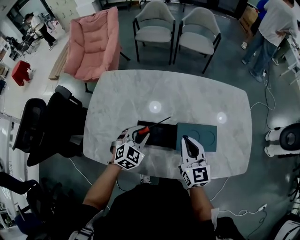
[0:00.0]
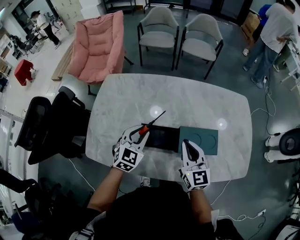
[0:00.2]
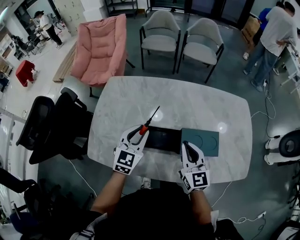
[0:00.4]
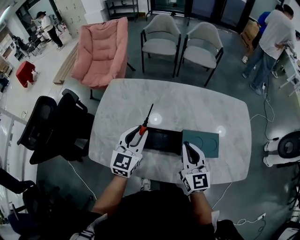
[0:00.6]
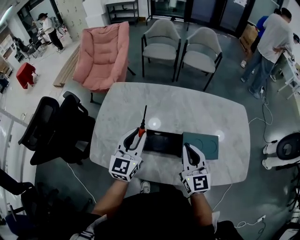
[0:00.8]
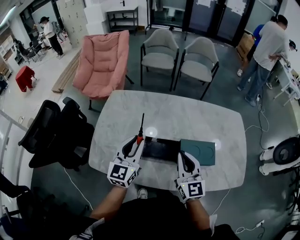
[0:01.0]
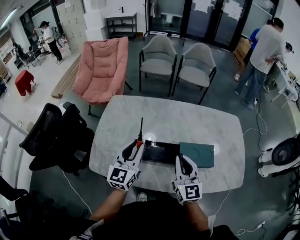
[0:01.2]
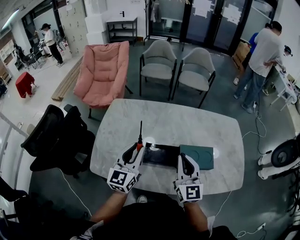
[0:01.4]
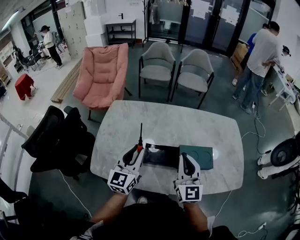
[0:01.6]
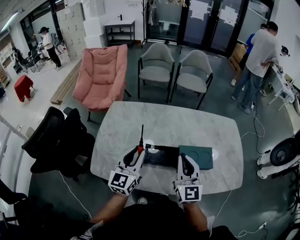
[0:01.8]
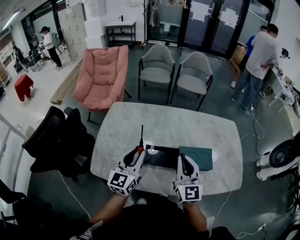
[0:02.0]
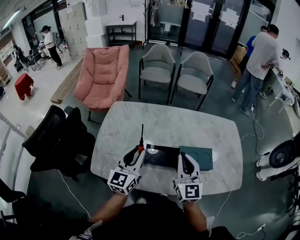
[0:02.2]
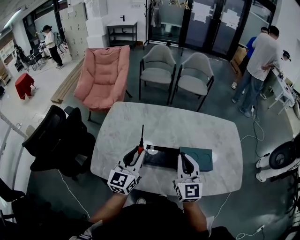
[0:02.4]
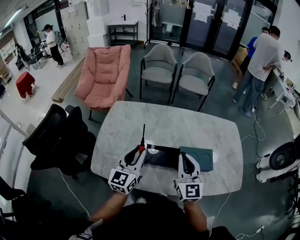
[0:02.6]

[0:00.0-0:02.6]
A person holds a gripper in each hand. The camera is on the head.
0:00.0 to 0:01.2: The right gripper shifts some 10 cm to the left, upward and backward; the left gripper travels upward and to the left by roughly 20 cm, and angles its fingers upward, by some 40 degrees.
0:01.2 to 0:02.6: The grippers stay close to where they were, moving slightly.

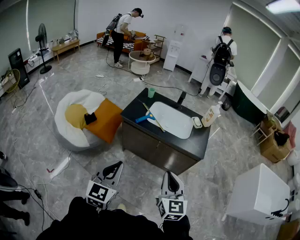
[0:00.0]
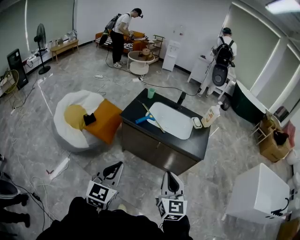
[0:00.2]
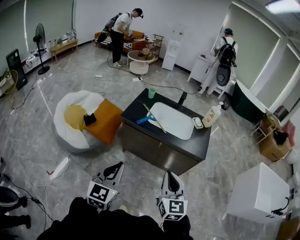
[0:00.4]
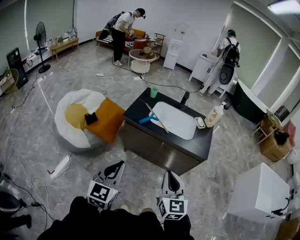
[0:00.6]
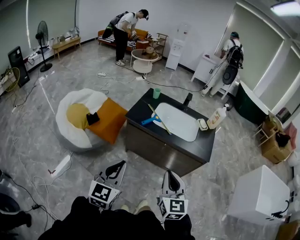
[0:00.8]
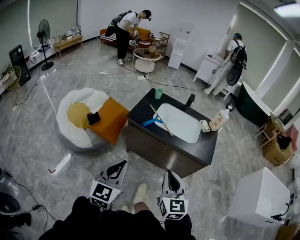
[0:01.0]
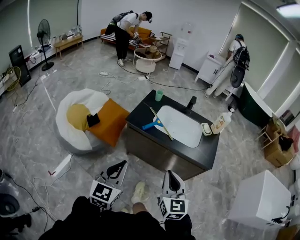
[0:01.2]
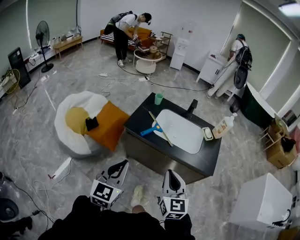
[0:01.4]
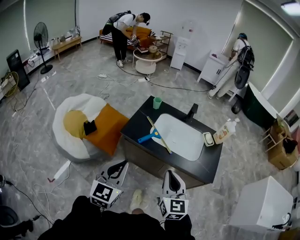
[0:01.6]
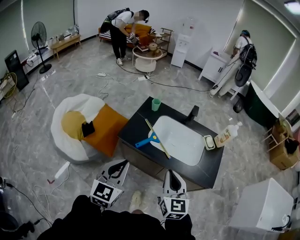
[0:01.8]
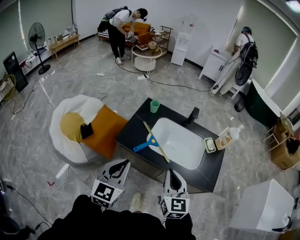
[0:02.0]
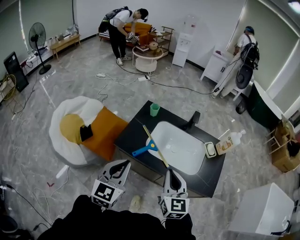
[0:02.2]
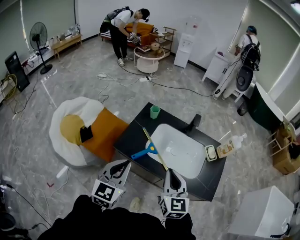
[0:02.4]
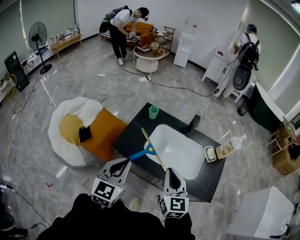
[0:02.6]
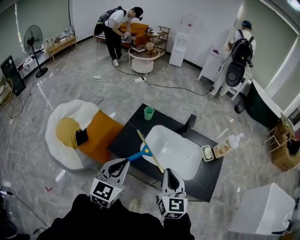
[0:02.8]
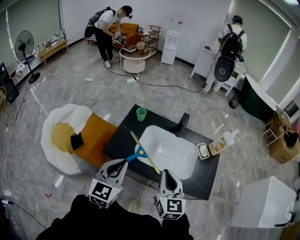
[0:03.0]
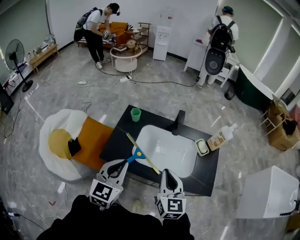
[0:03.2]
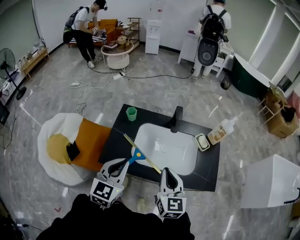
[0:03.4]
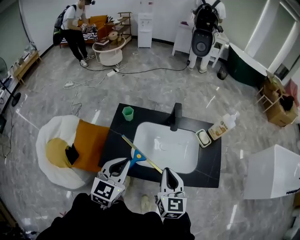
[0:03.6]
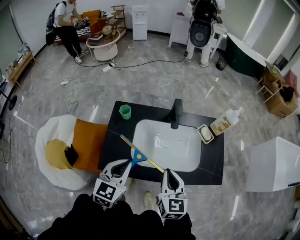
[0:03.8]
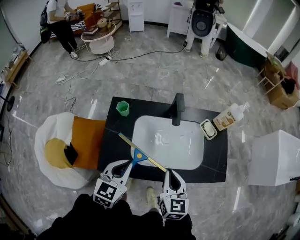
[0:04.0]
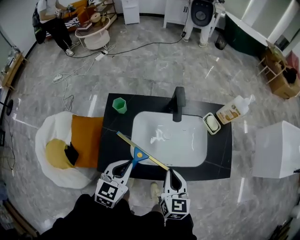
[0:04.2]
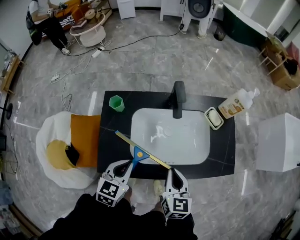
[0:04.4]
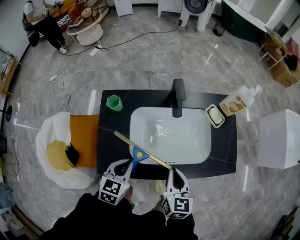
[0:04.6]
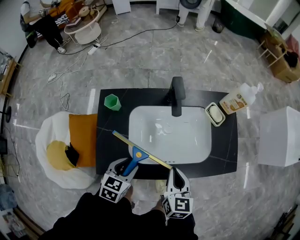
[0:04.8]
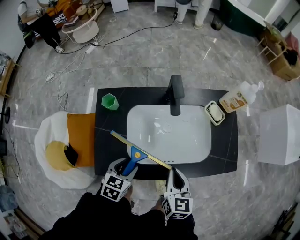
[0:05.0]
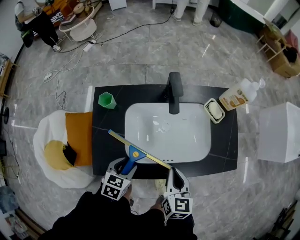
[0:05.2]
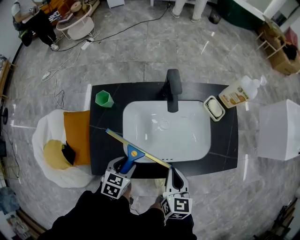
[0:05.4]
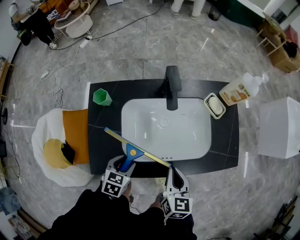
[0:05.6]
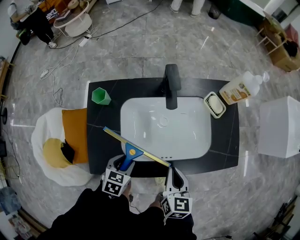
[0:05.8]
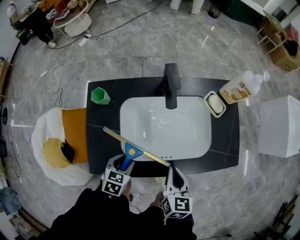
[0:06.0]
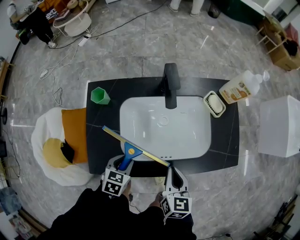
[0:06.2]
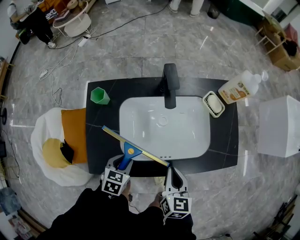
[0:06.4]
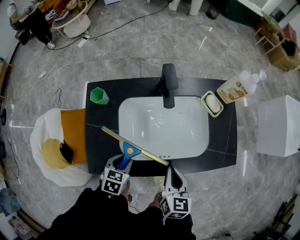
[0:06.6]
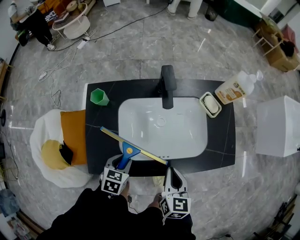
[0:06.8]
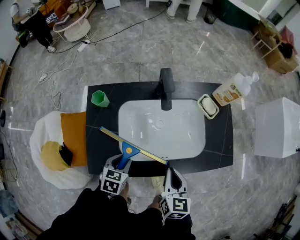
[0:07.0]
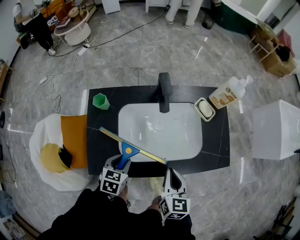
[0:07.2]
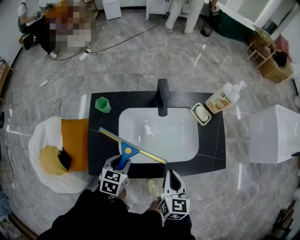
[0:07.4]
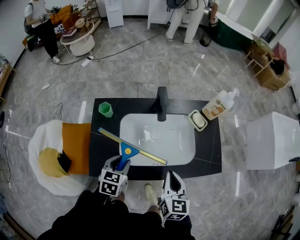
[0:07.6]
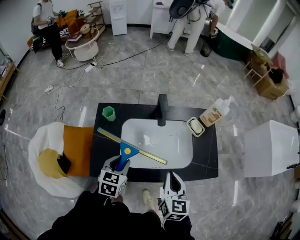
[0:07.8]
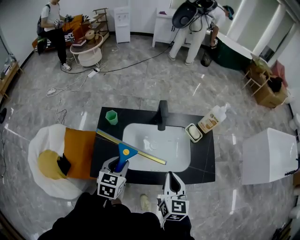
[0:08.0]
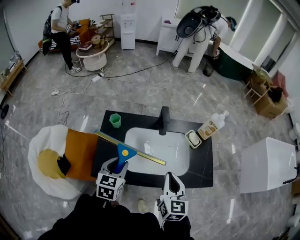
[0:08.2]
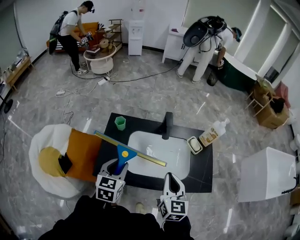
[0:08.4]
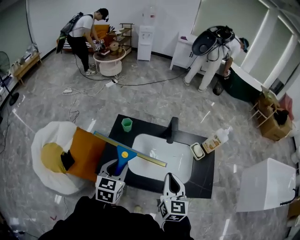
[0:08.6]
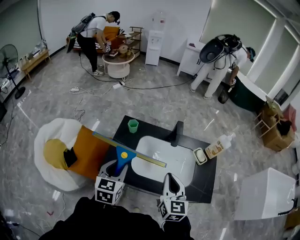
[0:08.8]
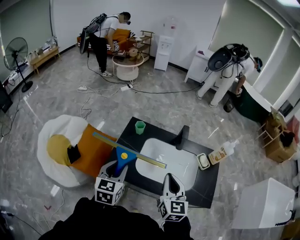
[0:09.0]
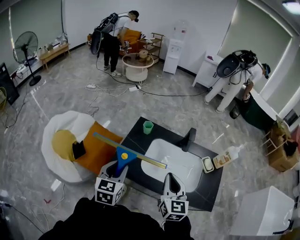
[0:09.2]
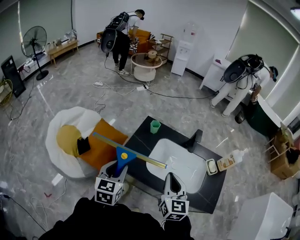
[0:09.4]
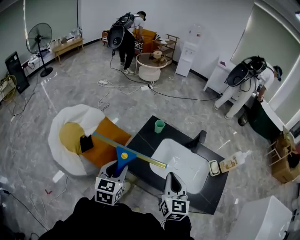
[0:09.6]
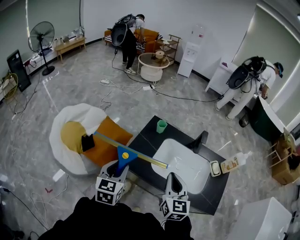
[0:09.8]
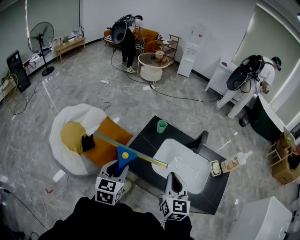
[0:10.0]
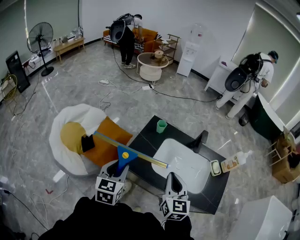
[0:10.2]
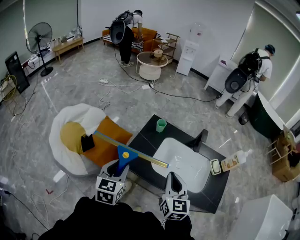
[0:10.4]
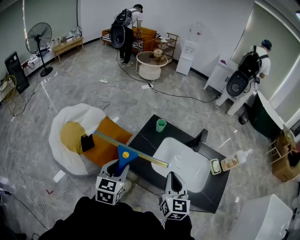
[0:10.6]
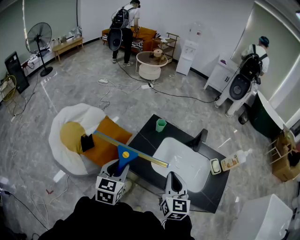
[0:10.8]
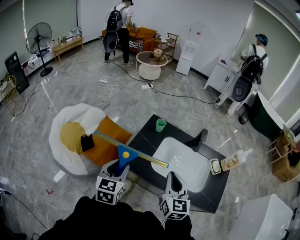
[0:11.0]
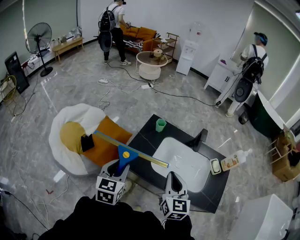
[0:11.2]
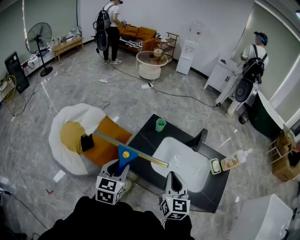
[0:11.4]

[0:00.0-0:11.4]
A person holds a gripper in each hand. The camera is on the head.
0:00.0 to 0:01.4: Both grippers move forward, about 15 cm.
0:01.4 to 0:02.8: Both grippers move forward, approximately 25 cm.
0:02.8 to 0:04.2: The left gripper shifts by roughly 25 cm, and changes its angle by some 30 degrees; the right gripper is displaced downward by roughly 15 cm, and rotates approximately 30 degrees.
0:04.2 to 0:05.6: The right gripper heads downward, covering roughly 10 cm, while the left gripper is displaced downward by approximately 20 cm, swivels roughly 30 degrees, and opens.
0:05.6 to 0:07.2: There are only small adjustments of the grippers.
0:07.2 to 0:08.6: The two grippers go approximately 20 cm upward. The right gripper turns by approximately 30 degrees. Meanwhile the left gripper changes its angle by some 30 degrees.
0:08.6 to 0:10.0: The left gripper goes some 15 cm to the left and backward, and rotates some 20 degrees, while the right gripper shifts some 10 cm to the left.
0:10.0 to 0:11.4: Both grippers stay put.

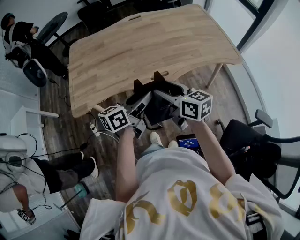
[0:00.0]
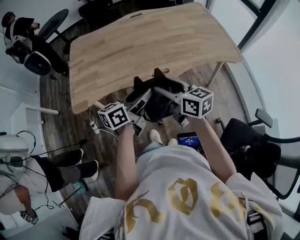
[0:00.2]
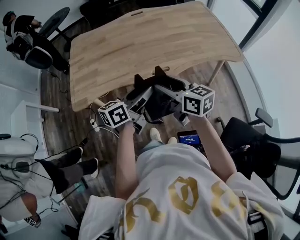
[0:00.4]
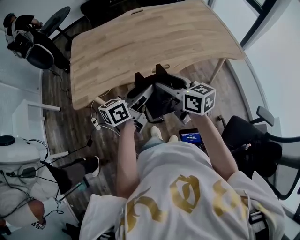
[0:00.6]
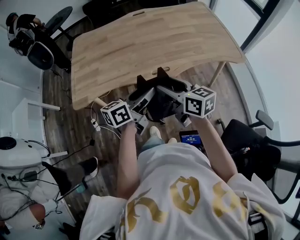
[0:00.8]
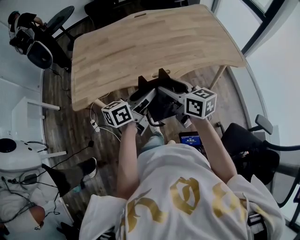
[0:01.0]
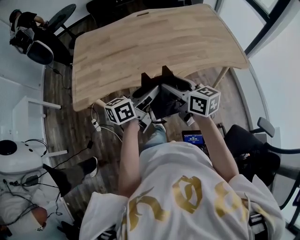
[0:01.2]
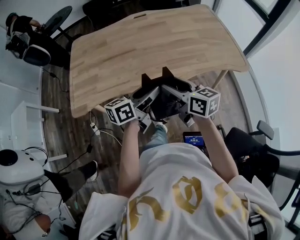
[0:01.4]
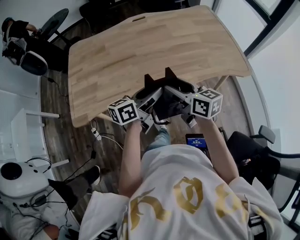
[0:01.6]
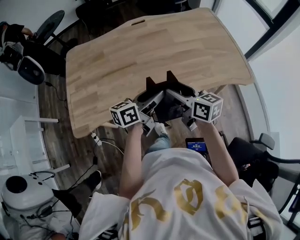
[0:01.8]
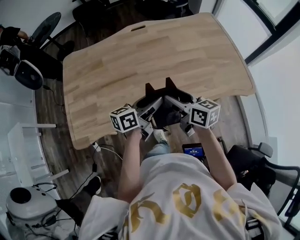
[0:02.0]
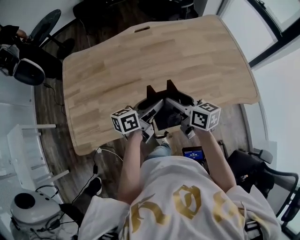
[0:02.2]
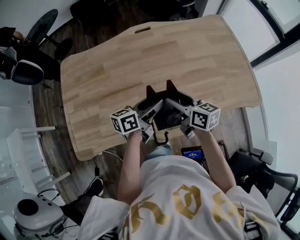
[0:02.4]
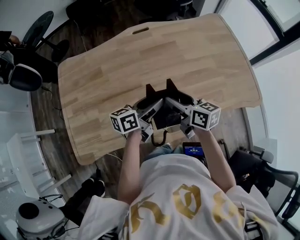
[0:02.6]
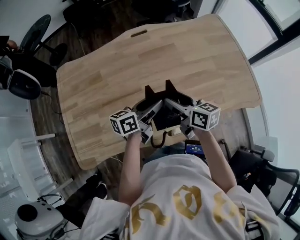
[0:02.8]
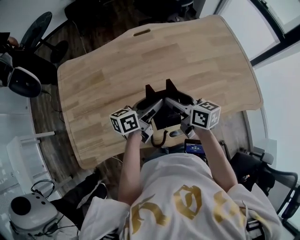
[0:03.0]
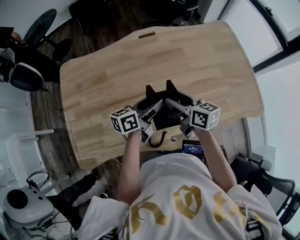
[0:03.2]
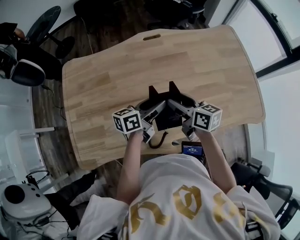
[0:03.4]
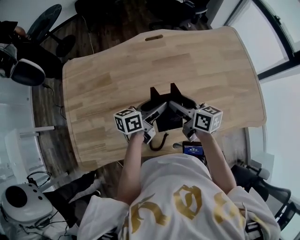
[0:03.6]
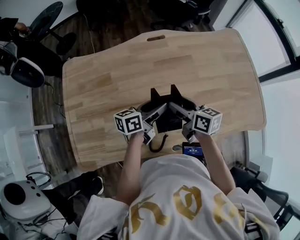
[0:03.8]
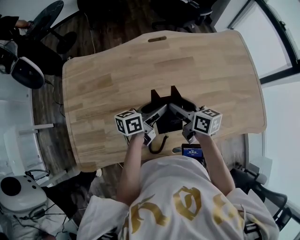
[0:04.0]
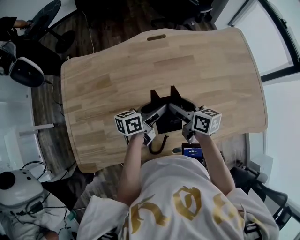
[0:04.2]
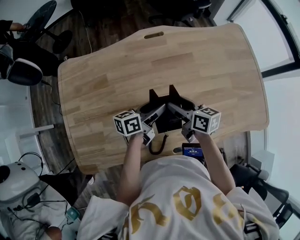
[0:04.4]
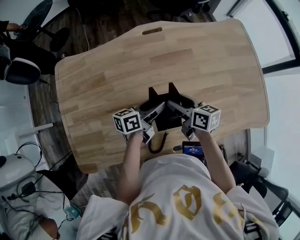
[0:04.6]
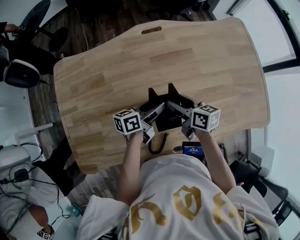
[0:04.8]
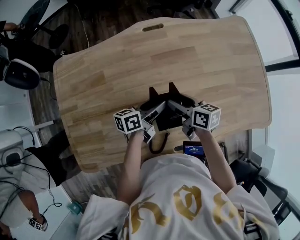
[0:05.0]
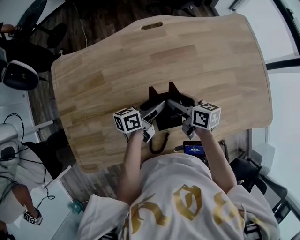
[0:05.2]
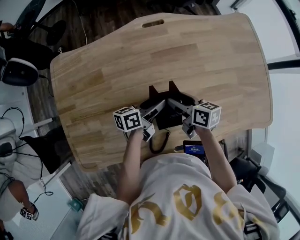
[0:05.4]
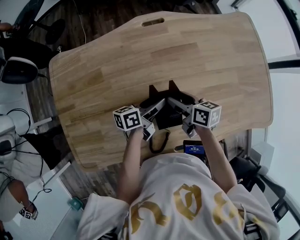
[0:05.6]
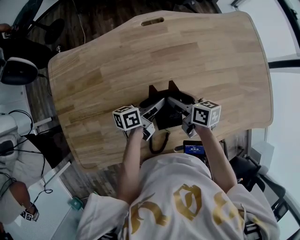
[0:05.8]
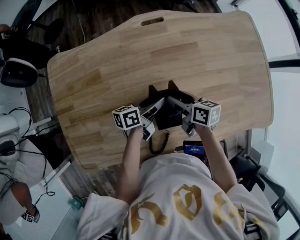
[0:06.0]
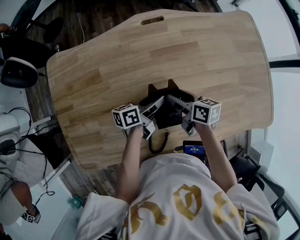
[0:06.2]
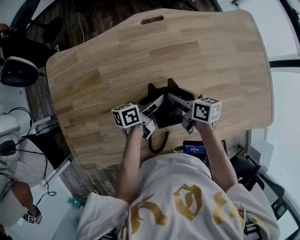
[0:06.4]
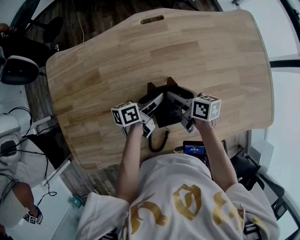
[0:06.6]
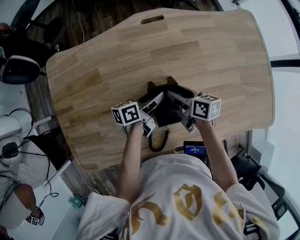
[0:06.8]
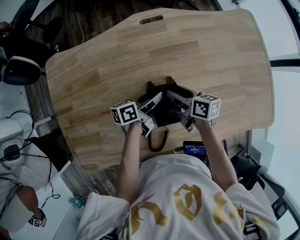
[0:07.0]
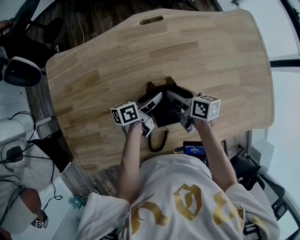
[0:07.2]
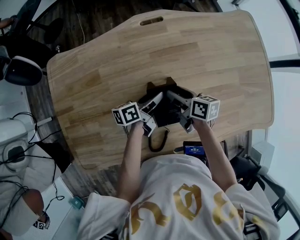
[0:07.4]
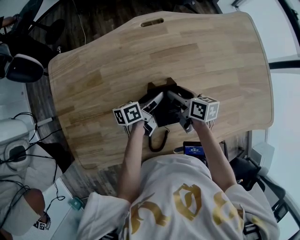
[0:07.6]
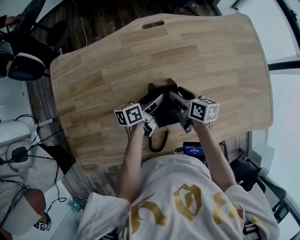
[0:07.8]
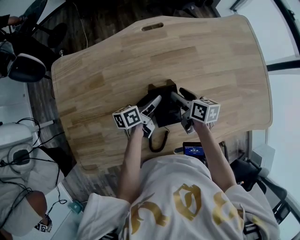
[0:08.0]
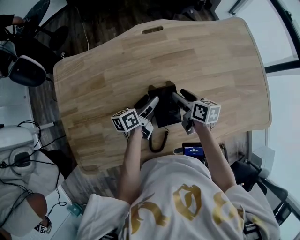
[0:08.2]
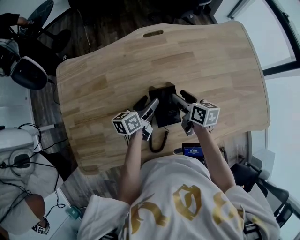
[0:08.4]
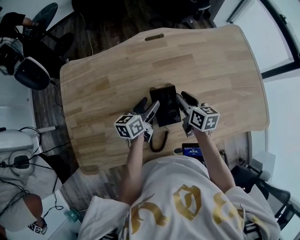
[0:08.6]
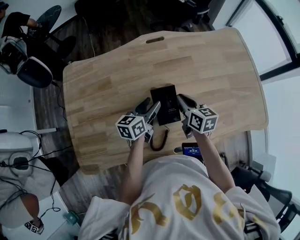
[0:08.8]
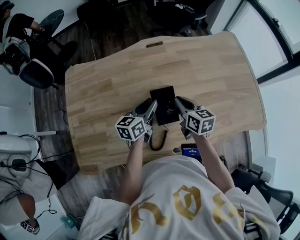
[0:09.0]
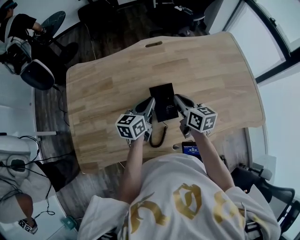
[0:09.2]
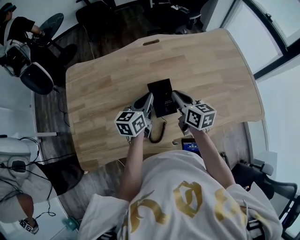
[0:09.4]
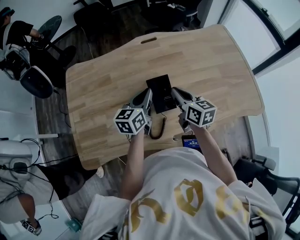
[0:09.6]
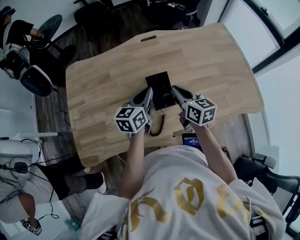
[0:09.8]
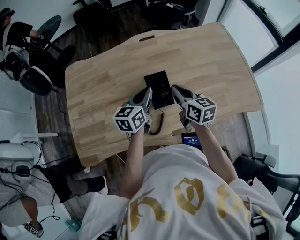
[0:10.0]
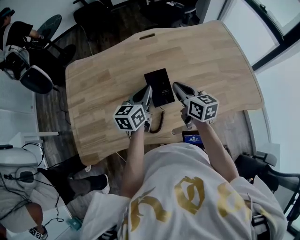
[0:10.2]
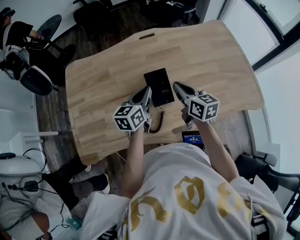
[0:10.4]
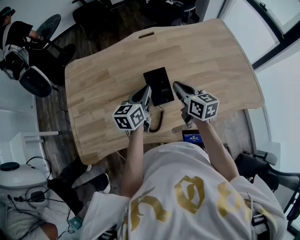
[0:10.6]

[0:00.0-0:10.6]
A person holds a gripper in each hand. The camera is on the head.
0:00.0 to 0:01.6: The two grippers go approximately 10 cm forward.
0:01.6 to 0:03.0: The two grippers go about 25 cm forward.
0:03.0 to 0:04.6: The two grippers go approximately 10 cm forward and downward.
0:04.6 to 0:06.0: Both grippers travel together downward, roughly 5 cm.
0:06.0 to 0:07.6: The grippers make only small movements.
0:07.6 to 0:09.0: Both grippers move upward, roughly 10 cm. The right gripper changes its angle by about 20 degrees, and closes. Meanwhile the left gripper swivels some 30 degrees, and closes.
0:09.0 to 0:10.6: The left gripper is displaced backward by approximately 5 cm. Meanwhile the right gripper heads backward and upward, covering some 10 cm.
